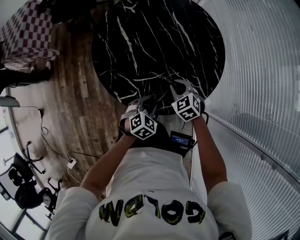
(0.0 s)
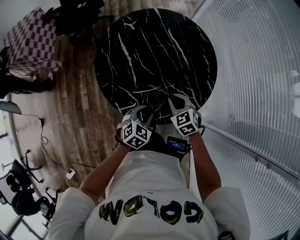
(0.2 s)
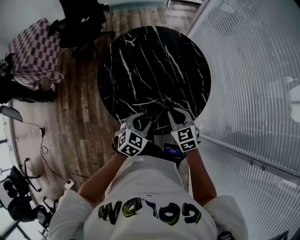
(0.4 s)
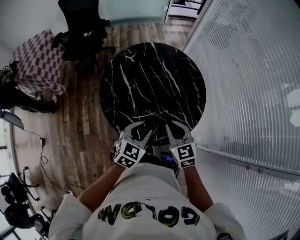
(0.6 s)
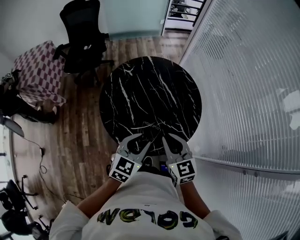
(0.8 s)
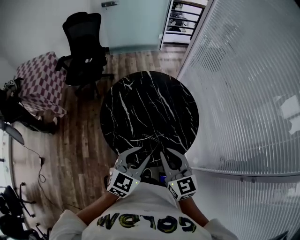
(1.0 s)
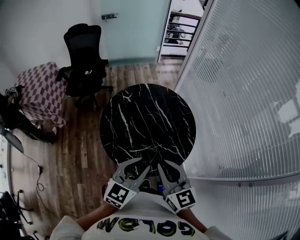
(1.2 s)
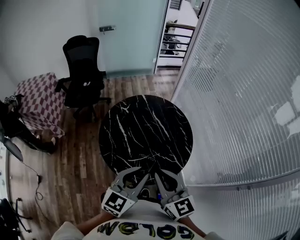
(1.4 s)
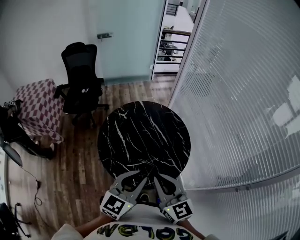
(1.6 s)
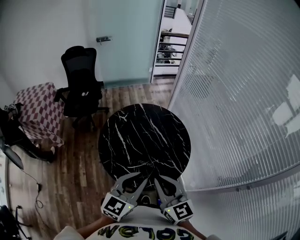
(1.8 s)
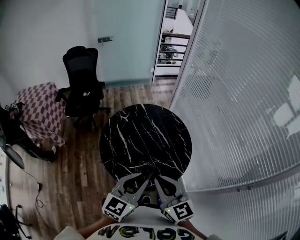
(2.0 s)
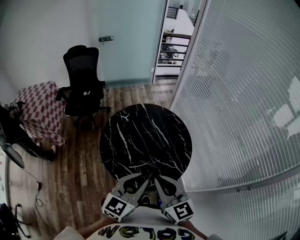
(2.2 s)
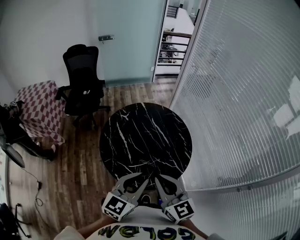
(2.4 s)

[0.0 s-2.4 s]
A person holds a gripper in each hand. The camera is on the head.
0.0 to 1.2 s: The grippers both shift upward by about 40 cm. The left gripper tips its fingers upward by approximately 40 degrees. The right gripper tilts its fingers roughly 40 degrees upward.
1.2 to 2.4 s: The grippers stay close to where they were, moving slightly.

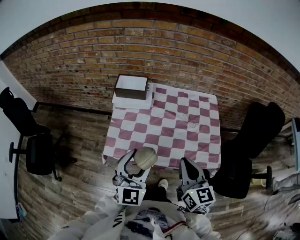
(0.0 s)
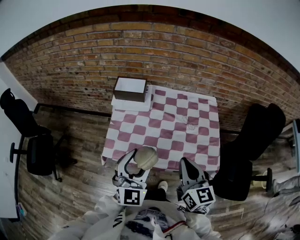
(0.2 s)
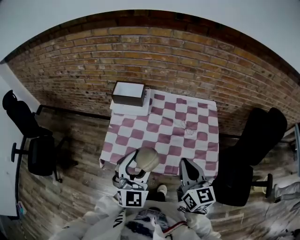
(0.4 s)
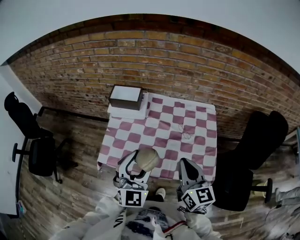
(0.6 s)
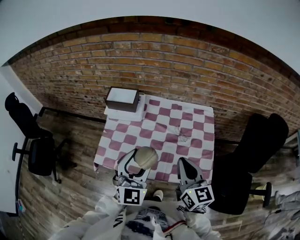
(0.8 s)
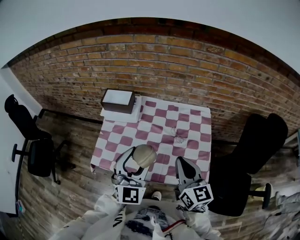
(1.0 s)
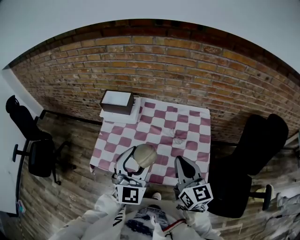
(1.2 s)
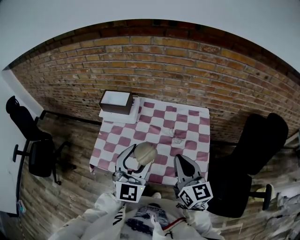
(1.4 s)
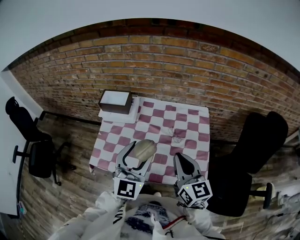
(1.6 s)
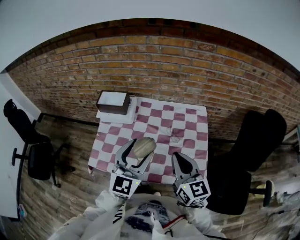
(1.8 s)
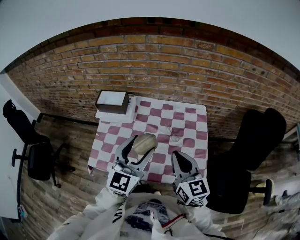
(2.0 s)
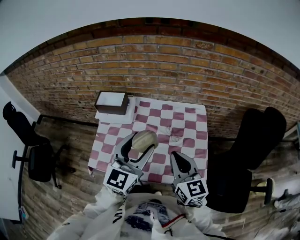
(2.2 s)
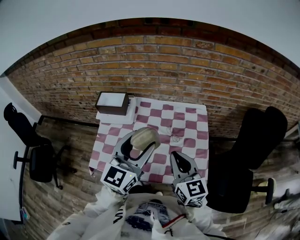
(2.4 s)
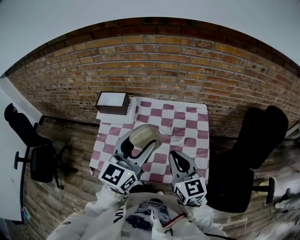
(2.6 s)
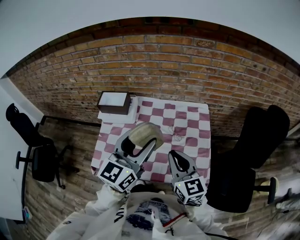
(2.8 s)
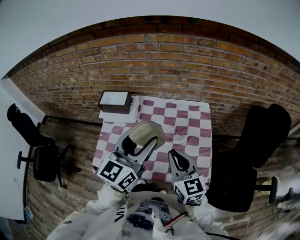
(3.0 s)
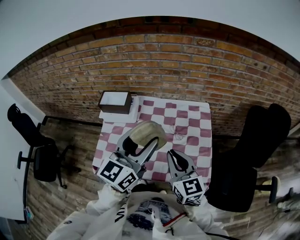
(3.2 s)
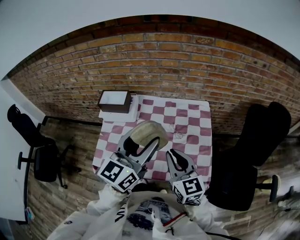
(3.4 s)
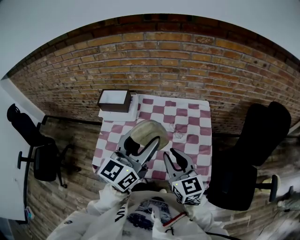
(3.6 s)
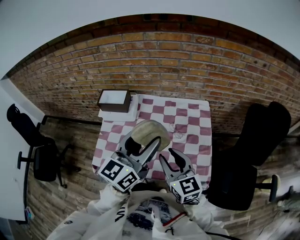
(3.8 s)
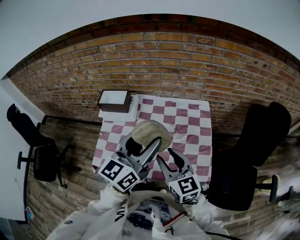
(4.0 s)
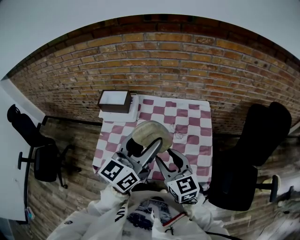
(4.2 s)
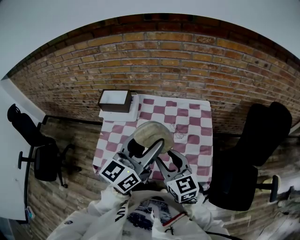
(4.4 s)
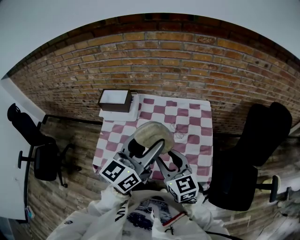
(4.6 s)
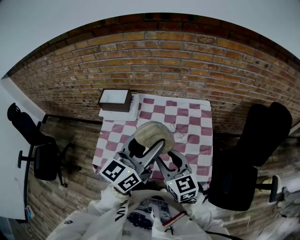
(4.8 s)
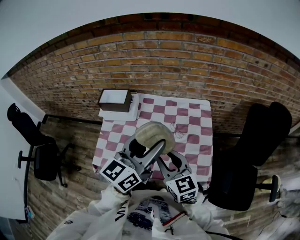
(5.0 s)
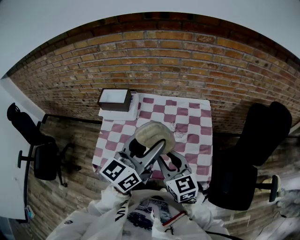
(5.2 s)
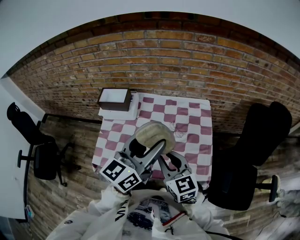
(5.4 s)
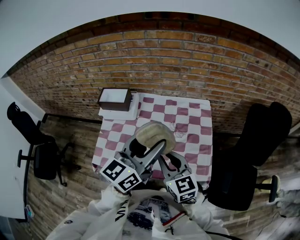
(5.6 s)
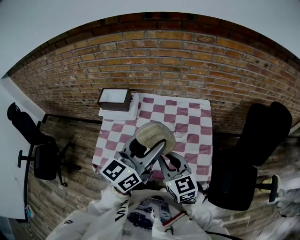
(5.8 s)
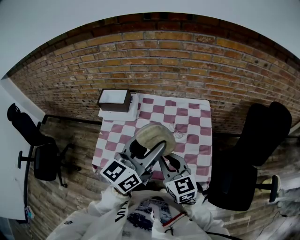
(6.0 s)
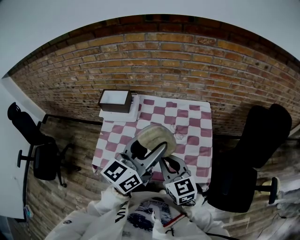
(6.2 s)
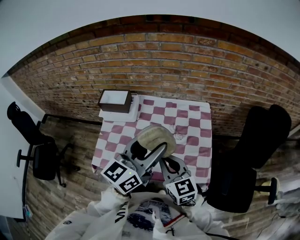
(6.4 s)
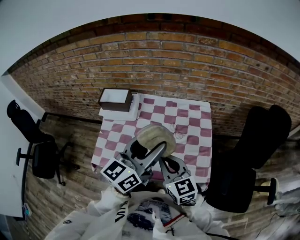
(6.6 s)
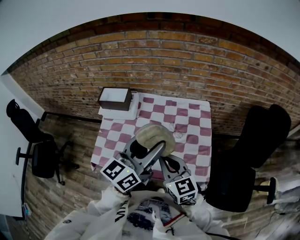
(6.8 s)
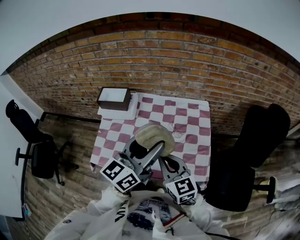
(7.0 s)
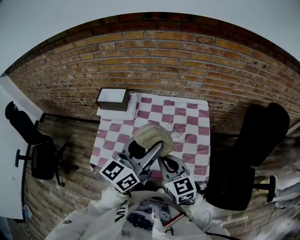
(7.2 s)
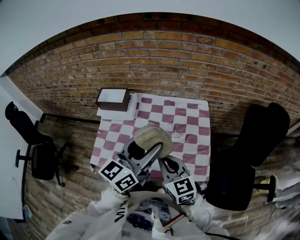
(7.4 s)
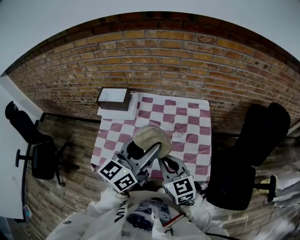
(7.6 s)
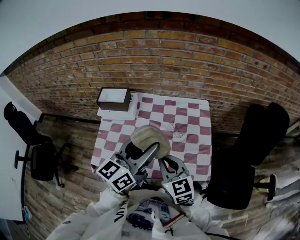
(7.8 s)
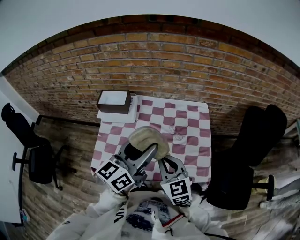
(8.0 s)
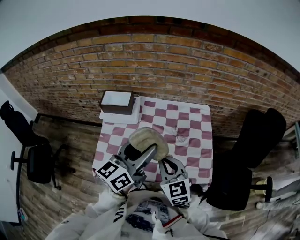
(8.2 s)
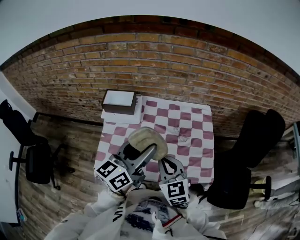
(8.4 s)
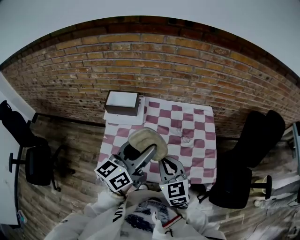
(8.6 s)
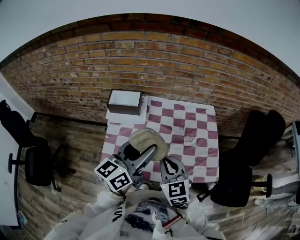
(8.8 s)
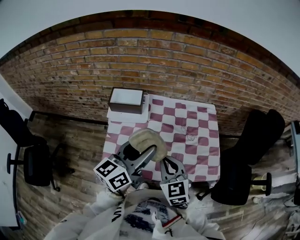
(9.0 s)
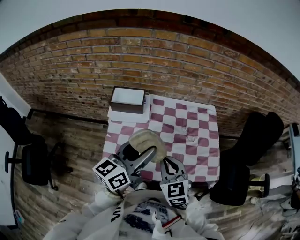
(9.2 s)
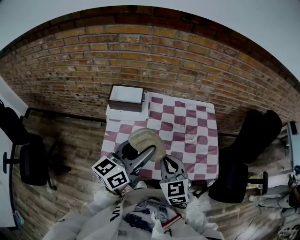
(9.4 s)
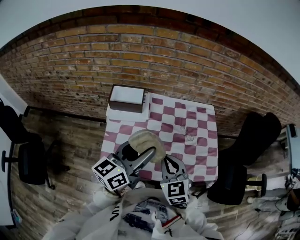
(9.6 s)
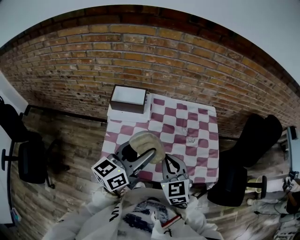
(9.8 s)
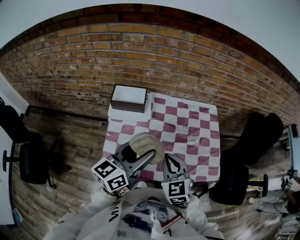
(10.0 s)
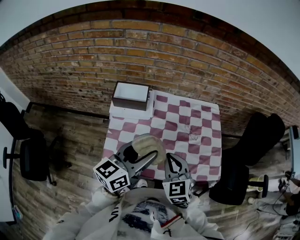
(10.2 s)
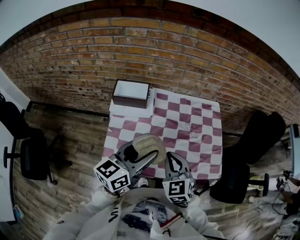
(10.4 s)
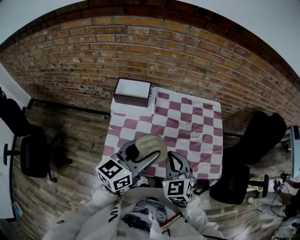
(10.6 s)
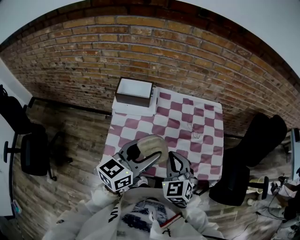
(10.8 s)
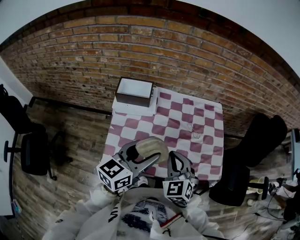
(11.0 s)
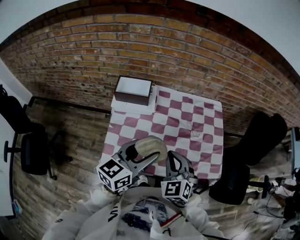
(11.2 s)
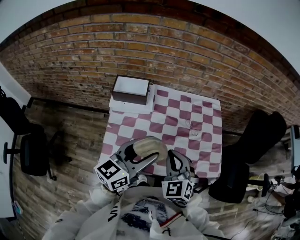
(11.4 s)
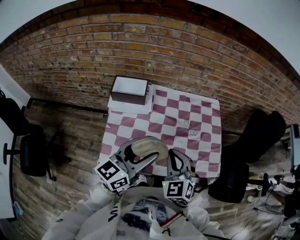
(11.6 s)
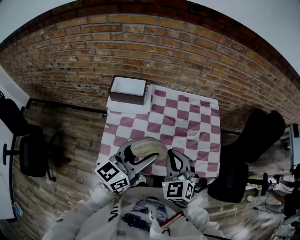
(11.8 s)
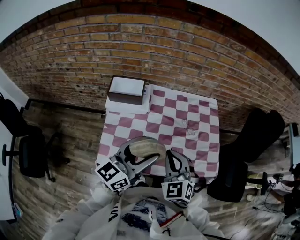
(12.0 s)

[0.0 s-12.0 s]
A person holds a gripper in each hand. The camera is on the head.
0.0 to 1.6 s: Both grippers travel together to the right and forward, some 15 cm.
1.6 to 3.0 s: The left gripper moves upward, about 5 cm, and rotates some 30 degrees.
3.0 to 4.4 s: The right gripper opens up.
4.4 to 6.0 s: The right gripper closes.
6.0 to 7.6 s: There are only small adjustments of the grippers.
7.6 to 9.0 s: The two grippers go some 15 cm to the left.
9.0 to 10.4 s: The grippers stay close to where they were, moving slightly.
10.4 to 12.0 s: The grippers move only a little.

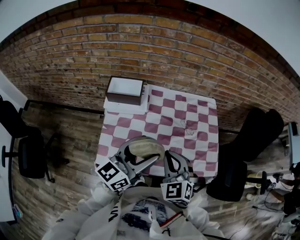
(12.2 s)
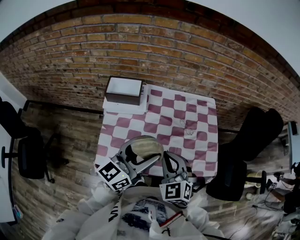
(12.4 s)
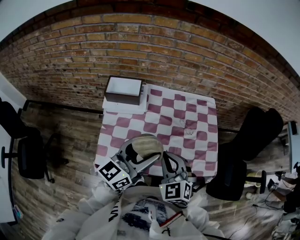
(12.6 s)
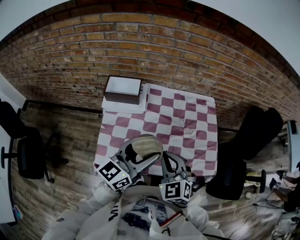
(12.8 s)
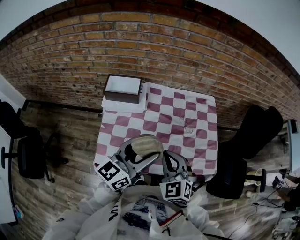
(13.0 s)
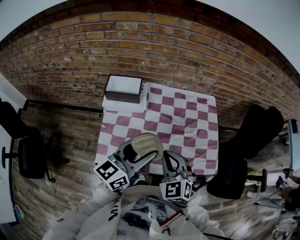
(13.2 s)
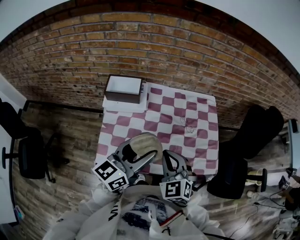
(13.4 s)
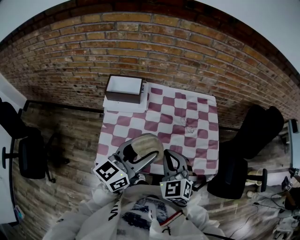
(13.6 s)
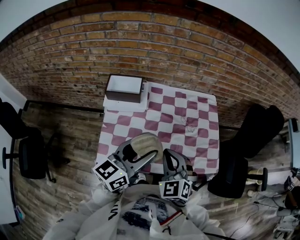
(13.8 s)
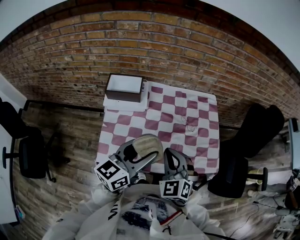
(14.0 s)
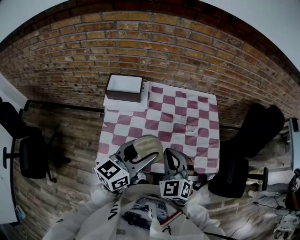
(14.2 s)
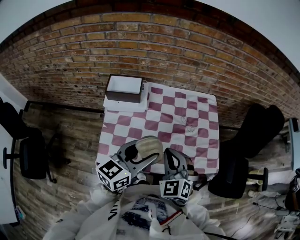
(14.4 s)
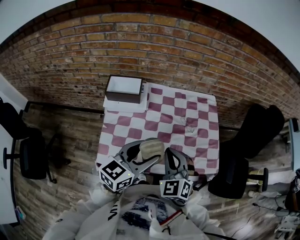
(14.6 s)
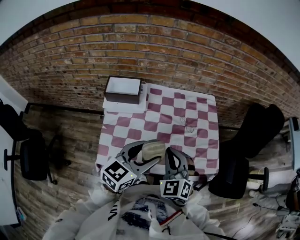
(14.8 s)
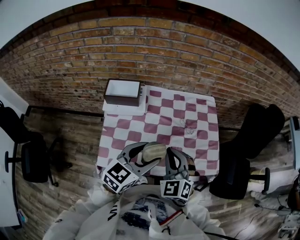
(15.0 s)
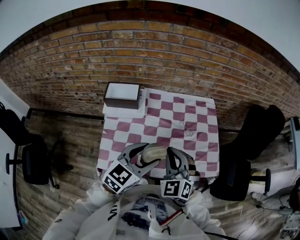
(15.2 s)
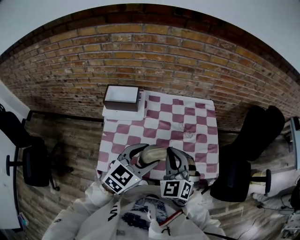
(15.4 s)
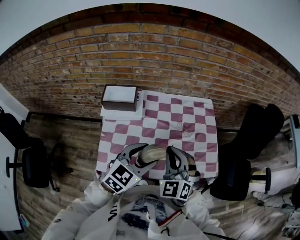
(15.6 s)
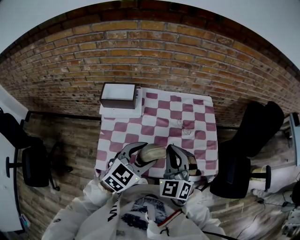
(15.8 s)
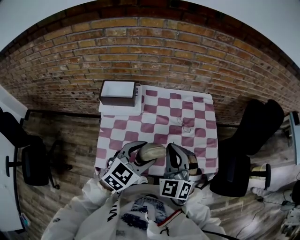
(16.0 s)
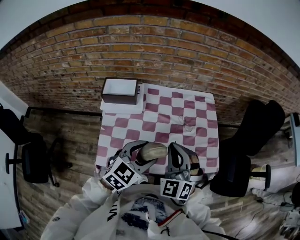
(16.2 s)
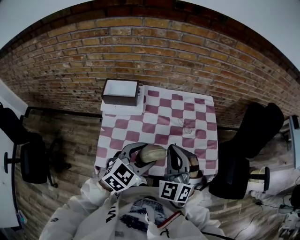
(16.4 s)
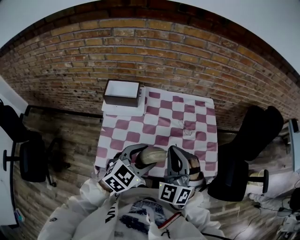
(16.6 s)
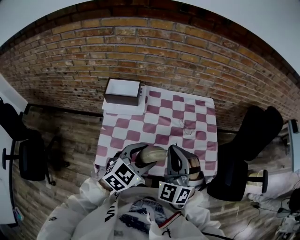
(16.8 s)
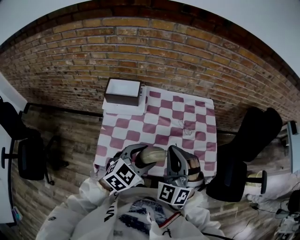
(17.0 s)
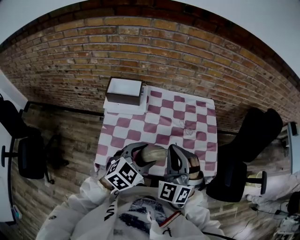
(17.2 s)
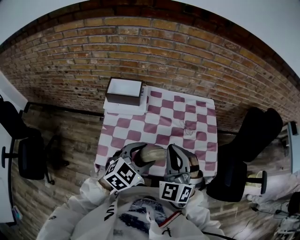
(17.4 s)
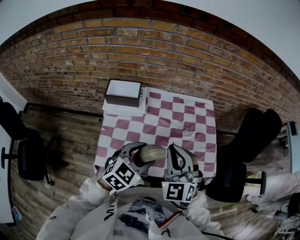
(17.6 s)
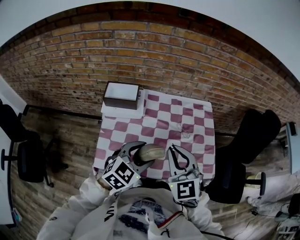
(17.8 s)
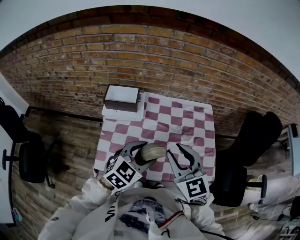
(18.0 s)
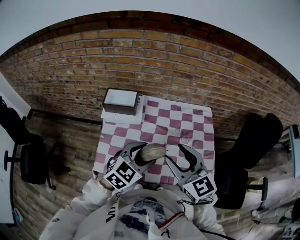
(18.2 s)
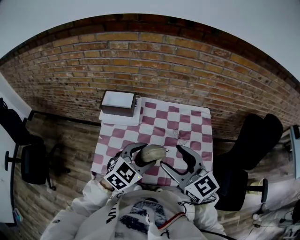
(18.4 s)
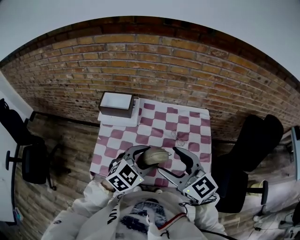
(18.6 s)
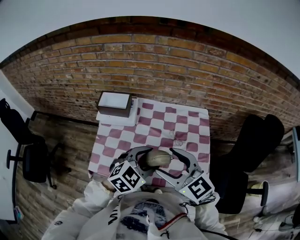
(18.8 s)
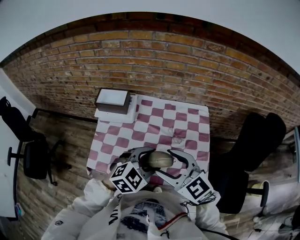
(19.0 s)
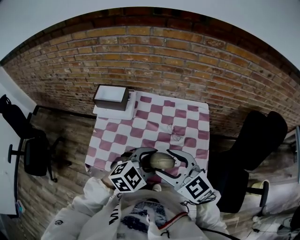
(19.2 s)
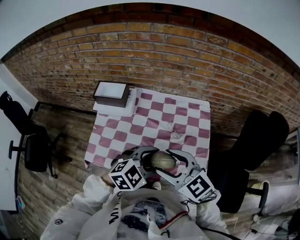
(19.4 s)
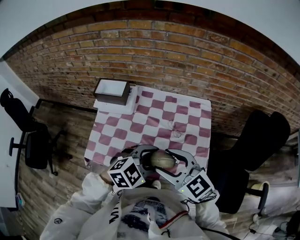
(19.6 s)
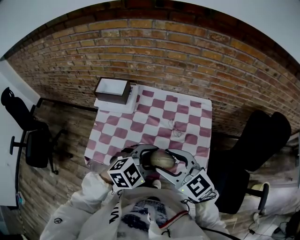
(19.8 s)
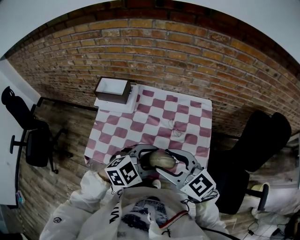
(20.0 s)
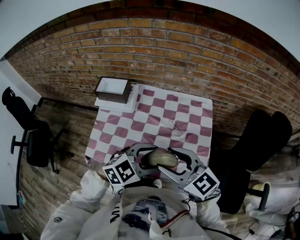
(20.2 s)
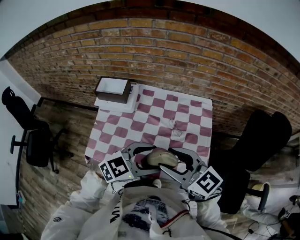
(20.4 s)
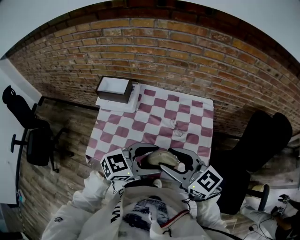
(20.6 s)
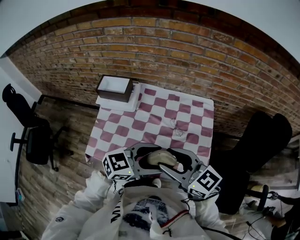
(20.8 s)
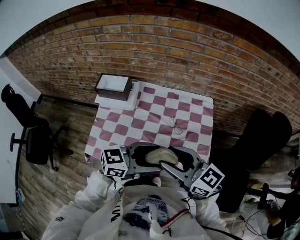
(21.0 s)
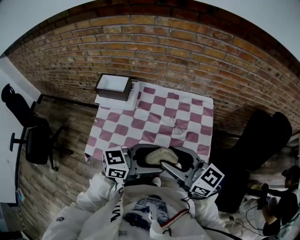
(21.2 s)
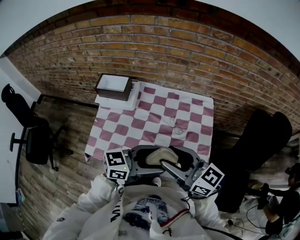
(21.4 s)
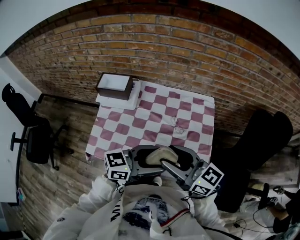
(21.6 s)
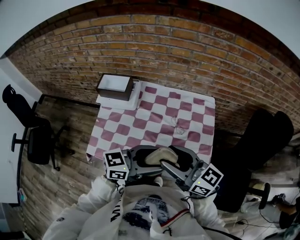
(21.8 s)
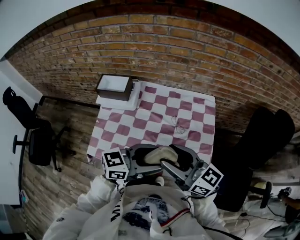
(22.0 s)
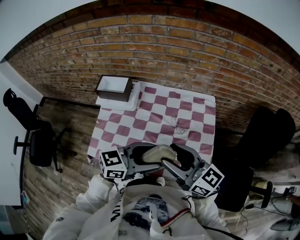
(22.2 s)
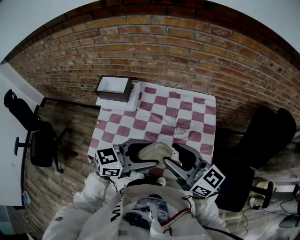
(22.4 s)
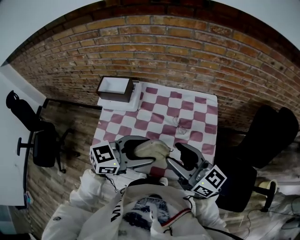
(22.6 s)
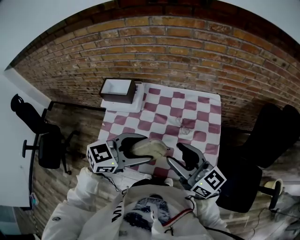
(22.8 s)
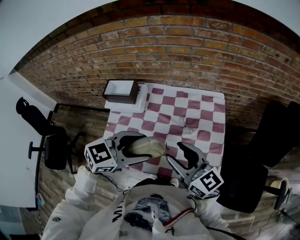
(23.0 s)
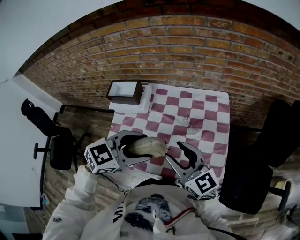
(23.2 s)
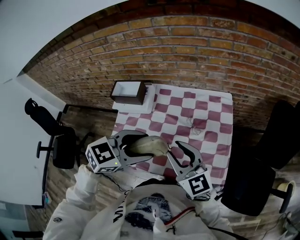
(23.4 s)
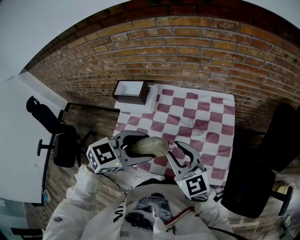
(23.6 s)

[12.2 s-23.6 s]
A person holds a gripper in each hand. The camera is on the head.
12.2 to 13.6 s: The grippers make only small movements.
13.6 to 15.0 s: The left gripper shifts by roughly 5 cm, and changes its angle by roughly 20 degrees.
15.0 to 16.4 s: The grippers stay close to where they were, moving slightly.
16.4 to 17.8 s: The right gripper rotates about 20 degrees.
17.8 to 19.4 s: The left gripper is displaced to the right by roughly 15 cm. The right gripper heads to the right, covering some 10 cm, rotates about 40 degrees, and opens.
19.4 to 20.8 s: The left gripper changes its angle by some 30 degrees; the right gripper swivels about 20 degrees.
20.8 to 22.2 s: The grippers stay close to where they were, moving slightly.
22.2 to 23.6 s: The left gripper heads to the left, covering about 5 cm, and swivels approximately 30 degrees. The right gripper rotates about 30 degrees.
